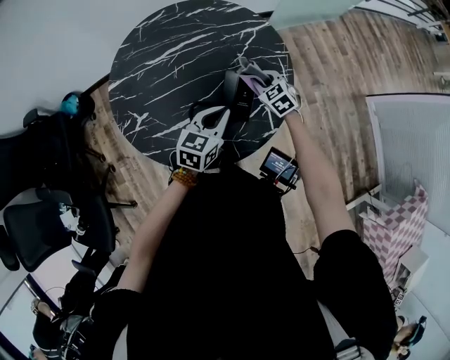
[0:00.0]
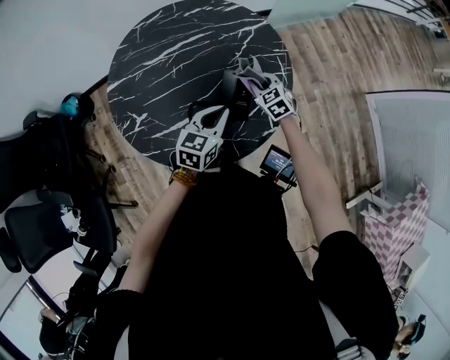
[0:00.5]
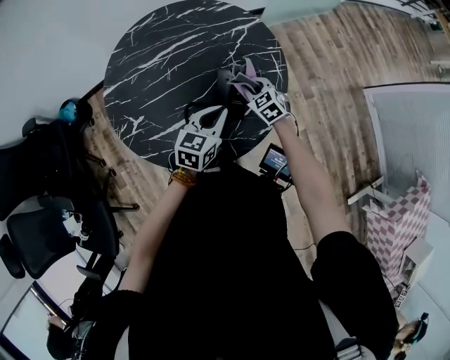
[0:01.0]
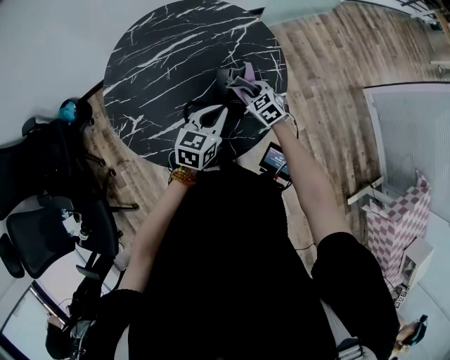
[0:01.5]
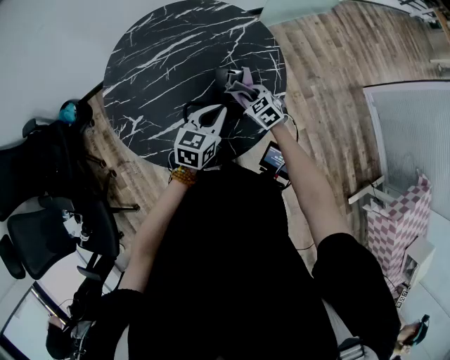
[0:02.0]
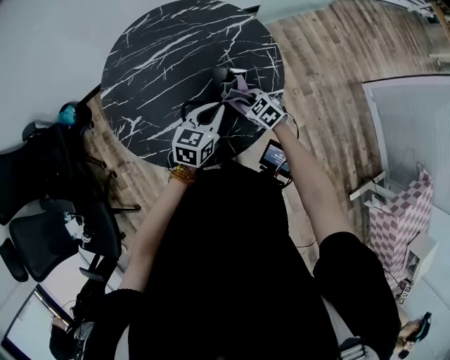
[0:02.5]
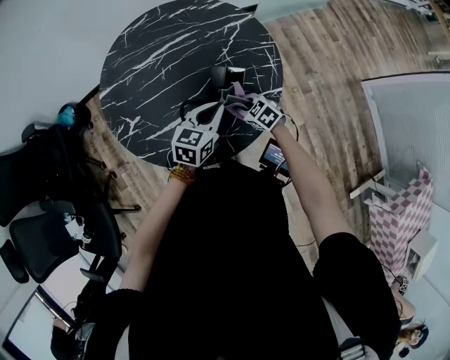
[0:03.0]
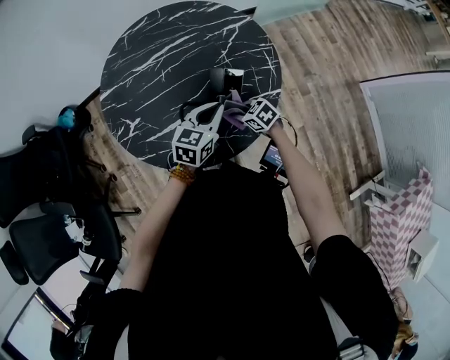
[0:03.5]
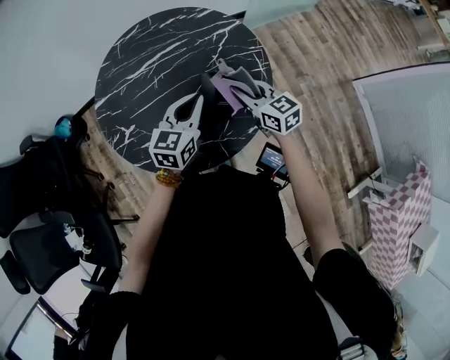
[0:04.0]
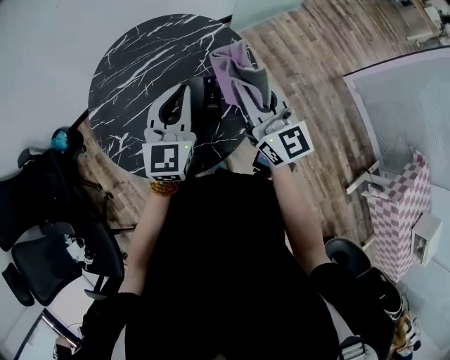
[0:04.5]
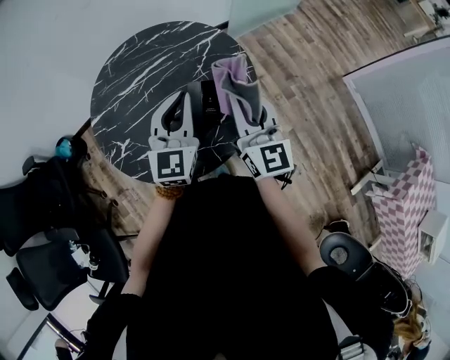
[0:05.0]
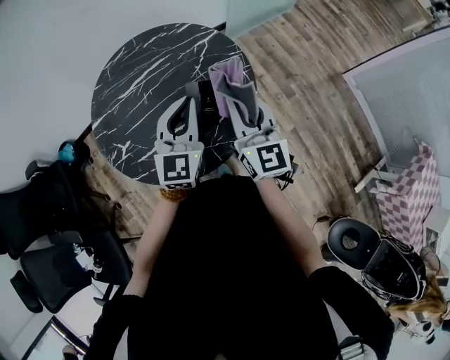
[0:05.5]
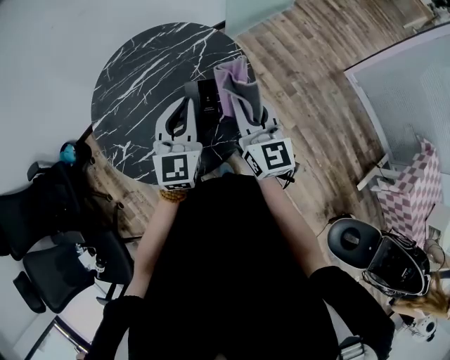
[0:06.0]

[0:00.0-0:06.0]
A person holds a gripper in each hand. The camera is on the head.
0:00.0 to 0:02.0: The right gripper is displaced backward by roughly 5 cm.
0:02.0 to 0:04.0: The right gripper heads upward, covering roughly 15 cm, and turns by approximately 30 degrees. The left gripper goes approximately 5 cm upward.
0:04.0 to 0:06.0: The left gripper moves upward, some 10 cm, and swivels about 20 degrees, while the right gripper goes some 15 cm upward and backward, and turns by some 40 degrees.

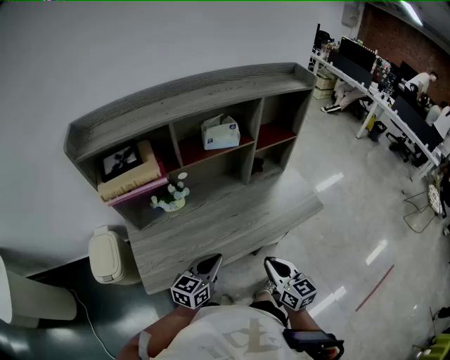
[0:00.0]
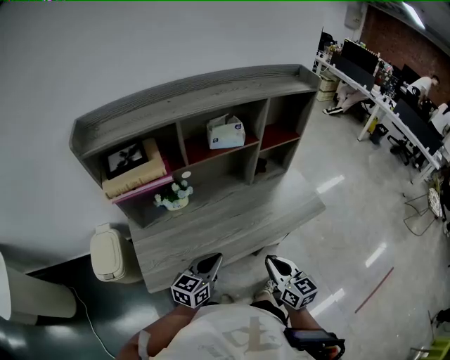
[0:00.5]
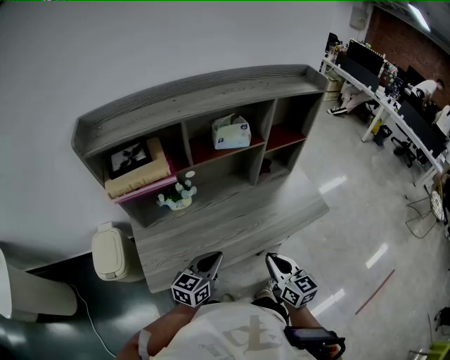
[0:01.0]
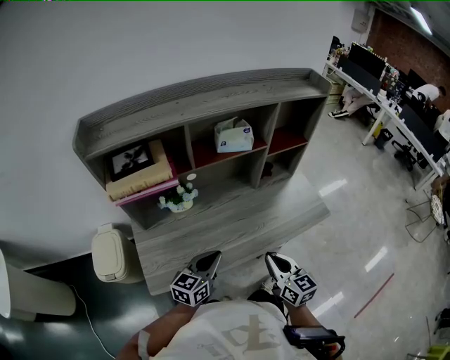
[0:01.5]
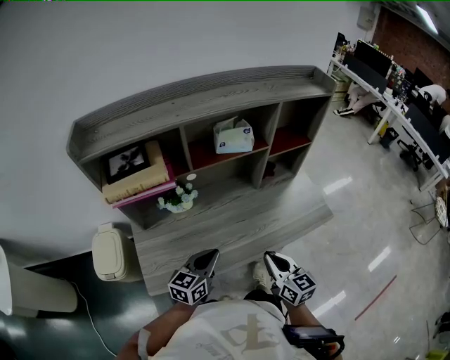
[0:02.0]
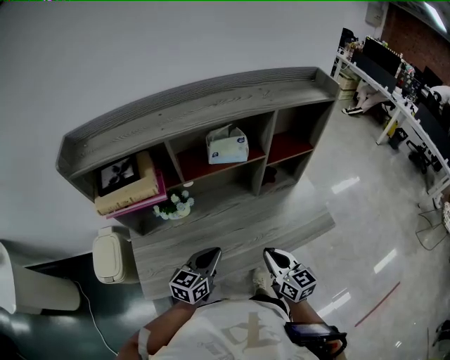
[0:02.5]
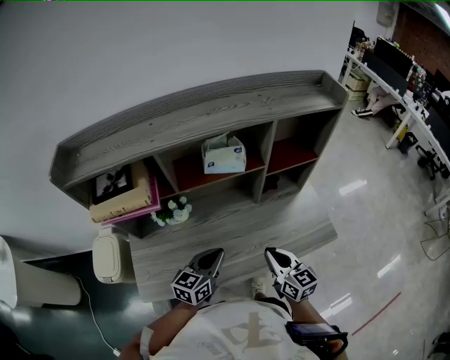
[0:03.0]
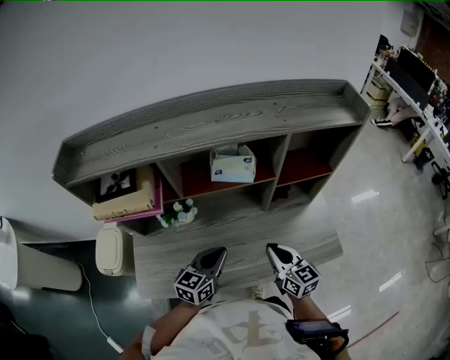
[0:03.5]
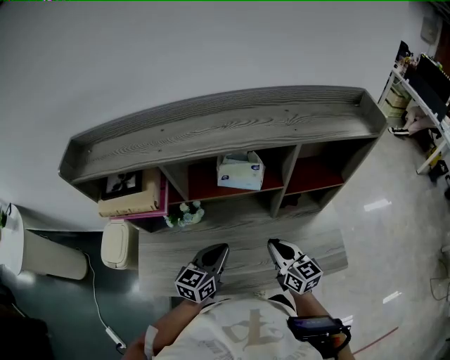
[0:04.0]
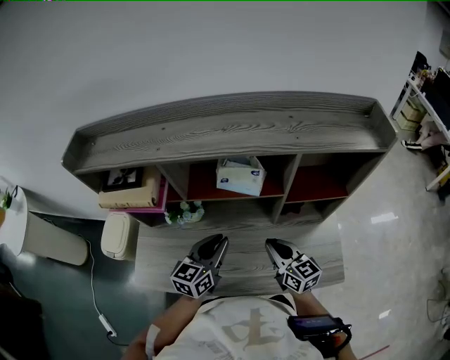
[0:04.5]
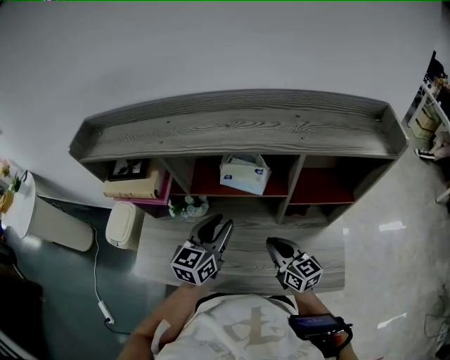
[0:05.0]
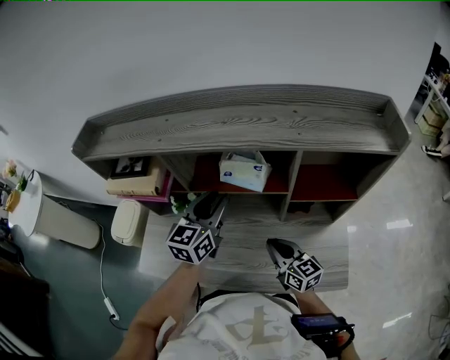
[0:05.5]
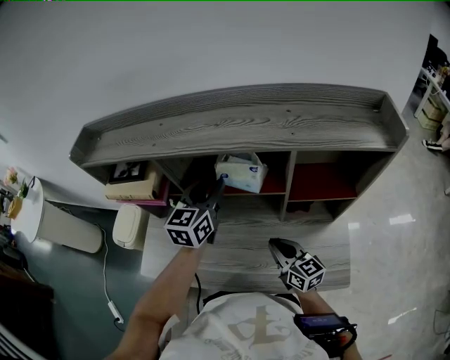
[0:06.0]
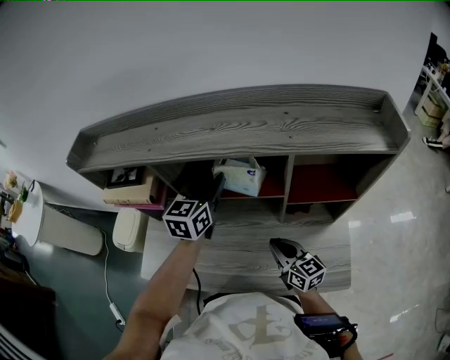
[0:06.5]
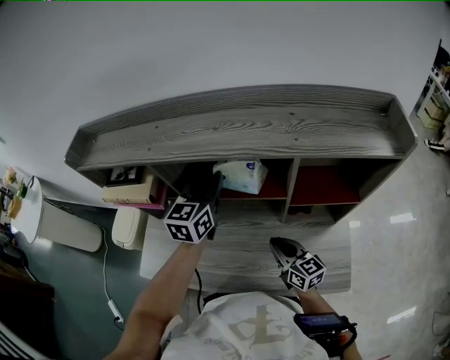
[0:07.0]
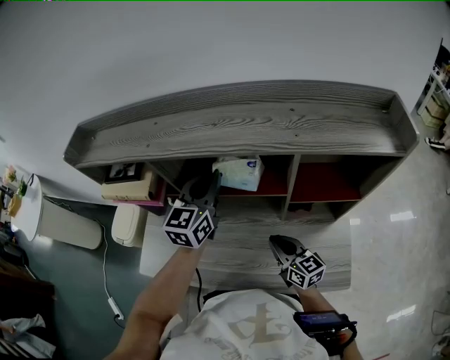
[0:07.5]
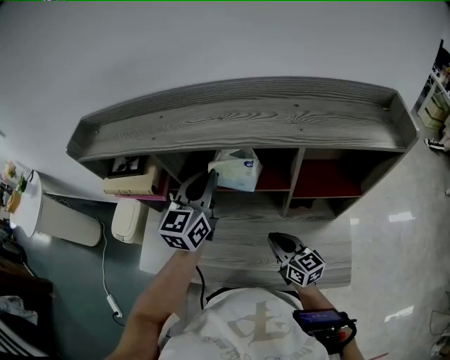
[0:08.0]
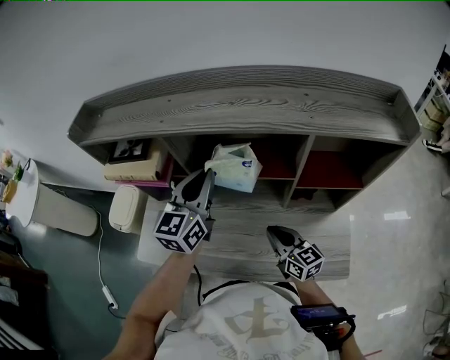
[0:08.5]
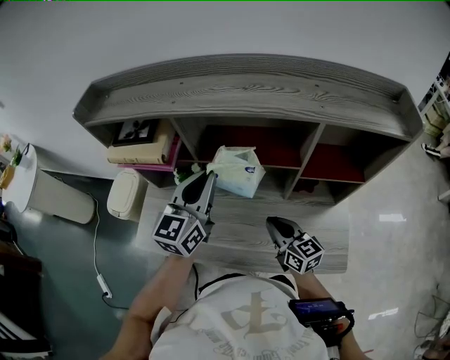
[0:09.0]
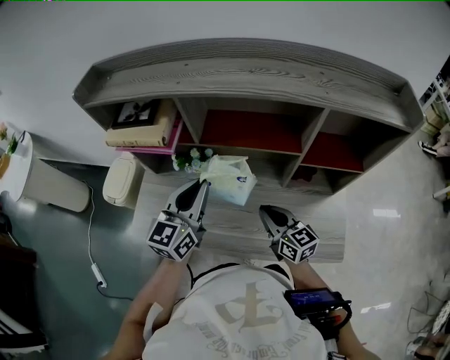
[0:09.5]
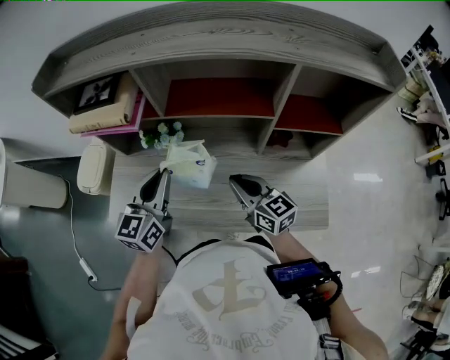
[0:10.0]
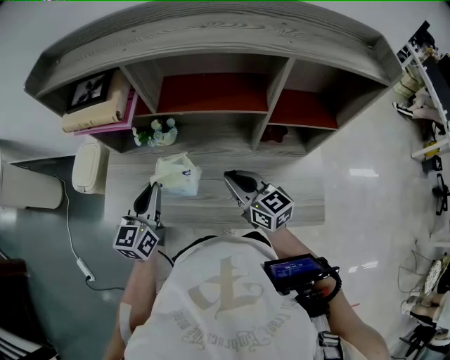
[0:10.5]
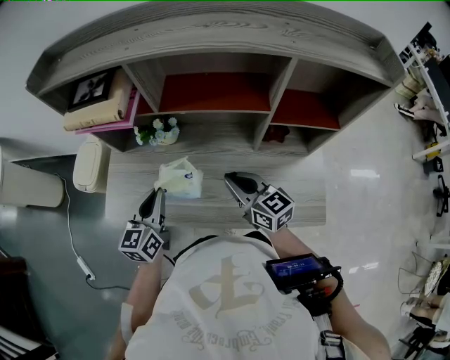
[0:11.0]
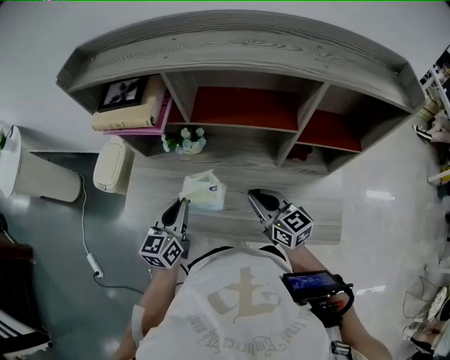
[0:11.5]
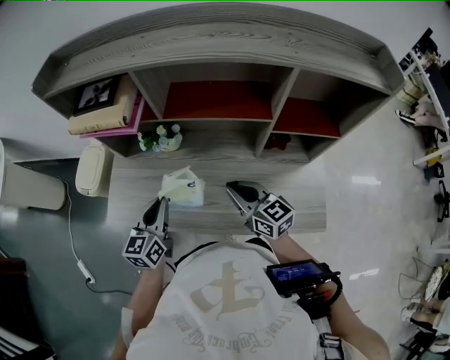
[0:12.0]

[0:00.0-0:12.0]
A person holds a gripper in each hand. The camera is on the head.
0:00.0 to 0:02.0: The right gripper goes about 5 cm forward. The left gripper moves approximately 5 cm.
0:02.0 to 0:04.0: The left gripper heads forward and to the right, covering approximately 20 cm; the right gripper is displaced forward by roughly 20 cm.
0:04.0 to 0:06.0: The left gripper is displaced forward and upward by approximately 20 cm, turns by roughly 20 degrees, and opens up.
0:06.0 to 0:08.0: The left gripper closes up.
0:08.0 to 0:10.0: The left gripper shifts approximately 20 cm backward, to the left and downward, while the right gripper shifts some 5 cm to the left.
0:10.0 to 0:12.0: The left gripper travels downward by approximately 10 cm.

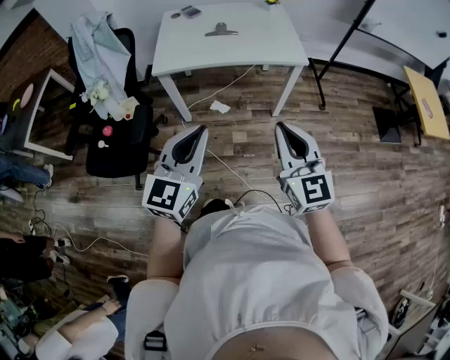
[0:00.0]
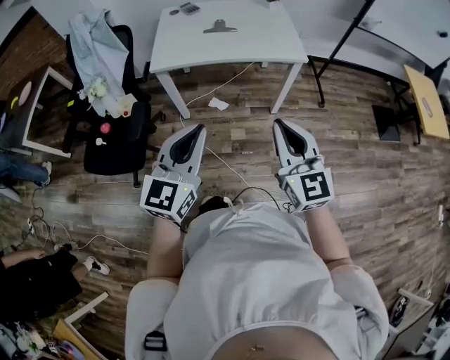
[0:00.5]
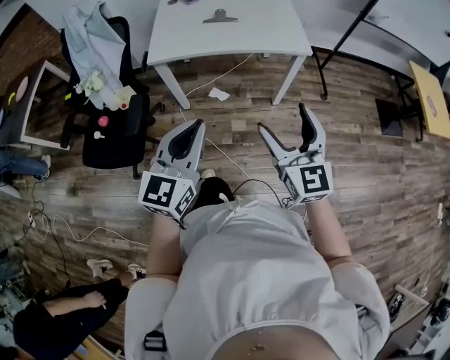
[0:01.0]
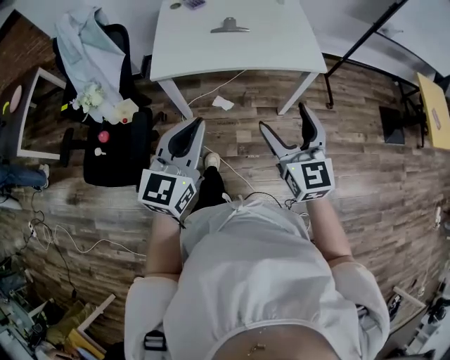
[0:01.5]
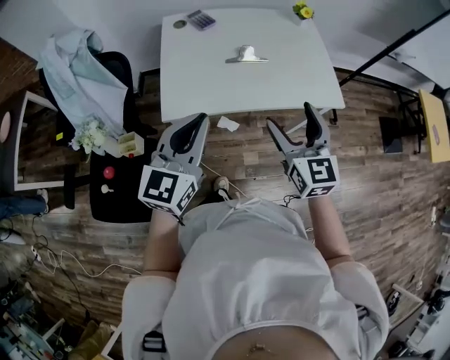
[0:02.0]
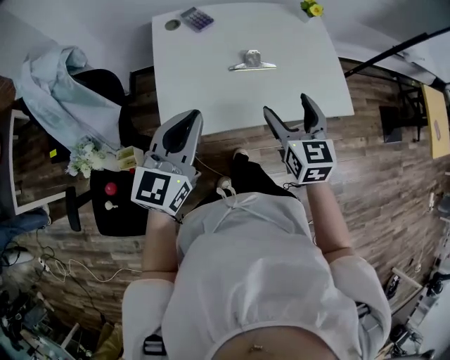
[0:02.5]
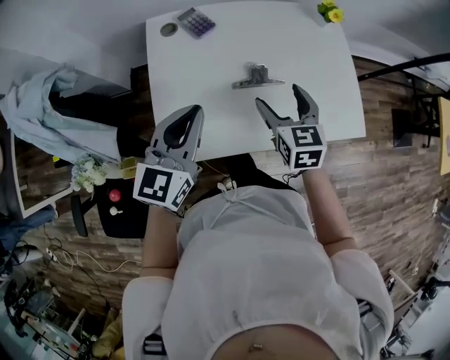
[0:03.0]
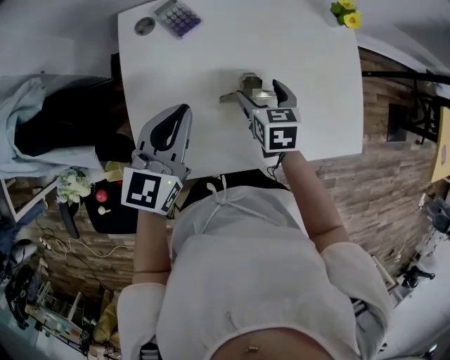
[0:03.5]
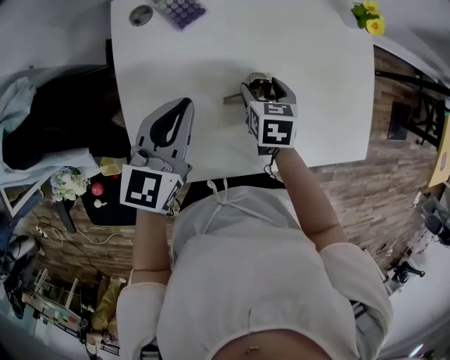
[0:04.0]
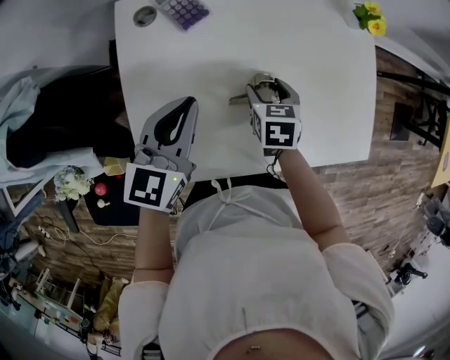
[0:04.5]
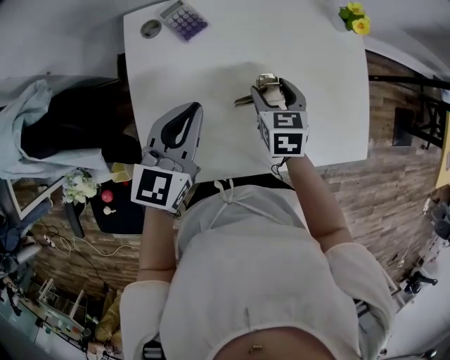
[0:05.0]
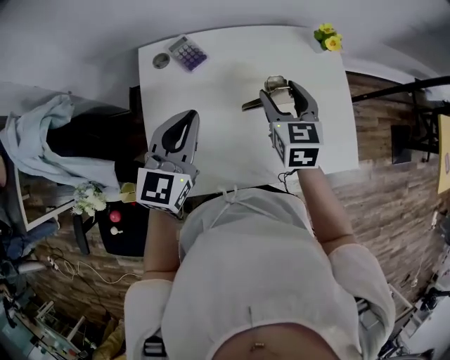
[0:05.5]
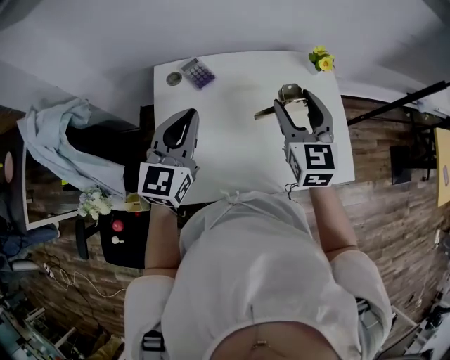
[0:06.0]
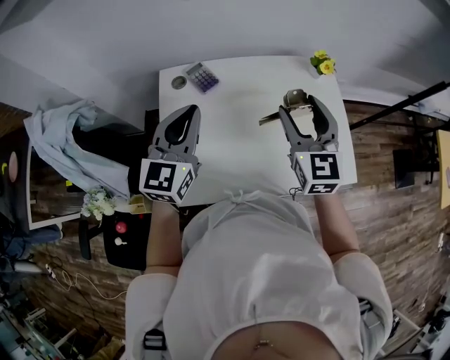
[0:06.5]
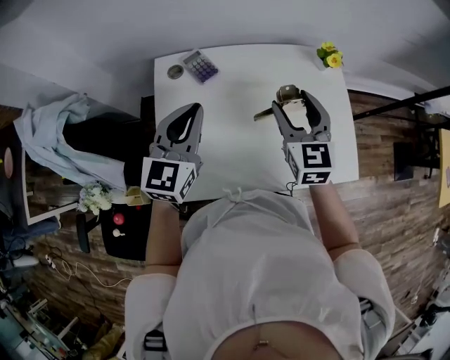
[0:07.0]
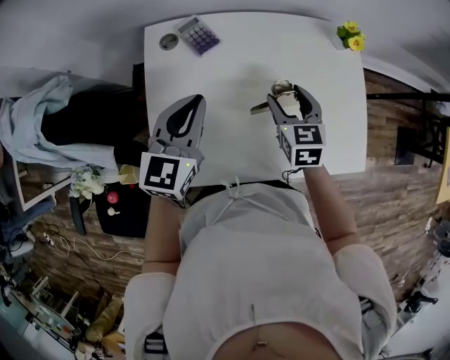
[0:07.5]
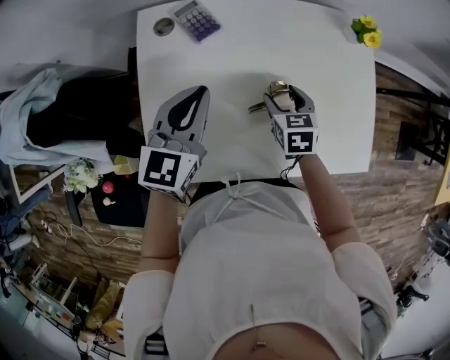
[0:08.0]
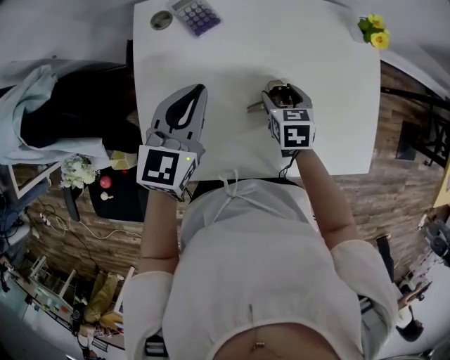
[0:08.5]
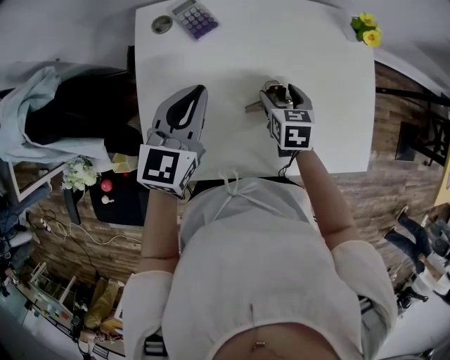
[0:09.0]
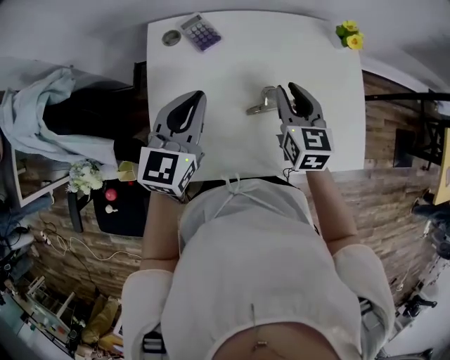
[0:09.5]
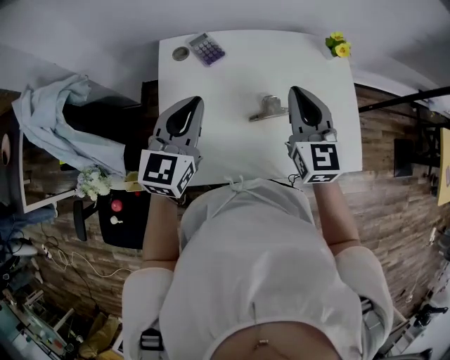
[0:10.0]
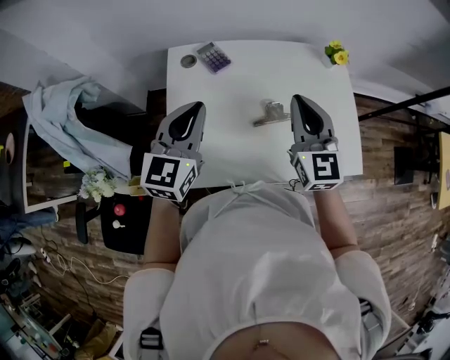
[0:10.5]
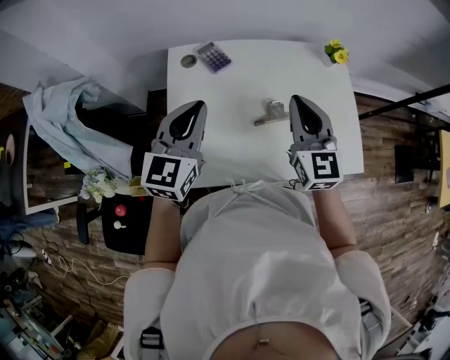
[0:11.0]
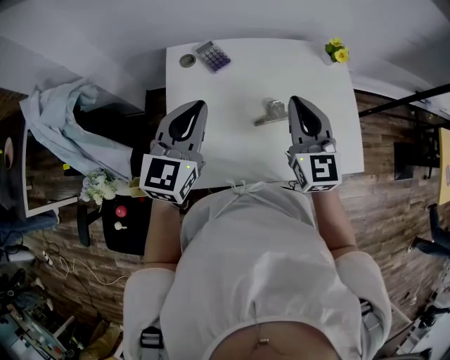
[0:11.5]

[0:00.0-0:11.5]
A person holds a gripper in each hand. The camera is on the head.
0:00.0 to 0:02.0: The left gripper goes roughly 40 cm forward and to the left. Meanwhile the right gripper travels forward by roughly 35 cm, and opens up.
0:02.0 to 0:04.0: Both grippers travel together forward and downward, about 40 cm. The right gripper angles its fingers downward, by approximately 50 degrees.
0:04.0 to 0:06.0: The left gripper goes some 15 cm upward, and changes its angle by roughly 20 degrees. Meanwhile the right gripper is displaced upward by roughly 30 cm, and angles its fingers upward, by approximately 40 degrees.
0:06.0 to 0:07.5: The left gripper moves downward, roughly 10 cm; the right gripper shifts roughly 20 cm downward, and rotates approximately 20 degrees.
0:07.5 to 0:09.5: The right gripper moves about 15 cm downward and comes back, and closes.
0:09.5 to 0:11.5: The right gripper moves upward and backward, roughly 15 cm, and rotates roughly 20 degrees, while the left gripper moves upward, some 10 cm.
